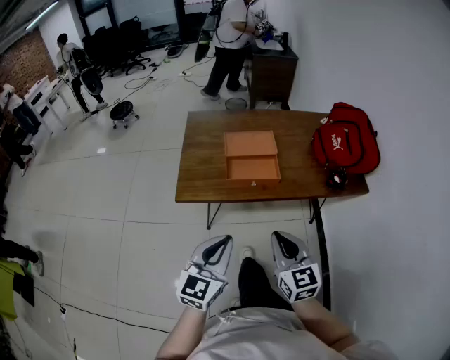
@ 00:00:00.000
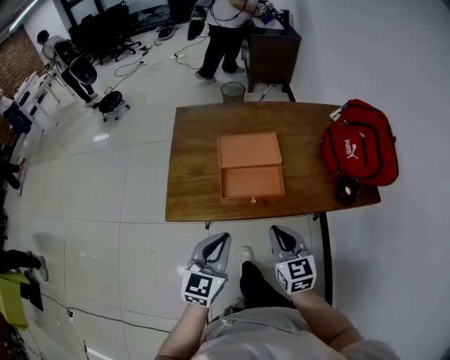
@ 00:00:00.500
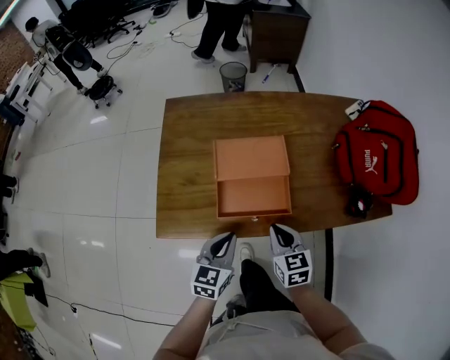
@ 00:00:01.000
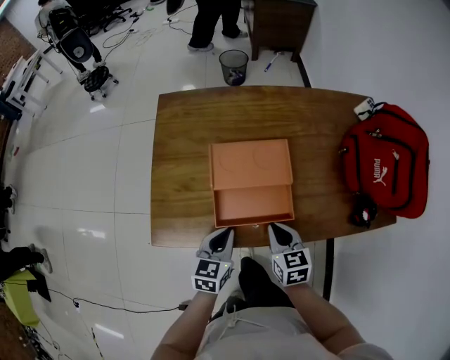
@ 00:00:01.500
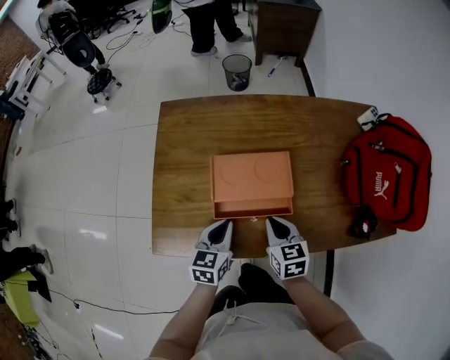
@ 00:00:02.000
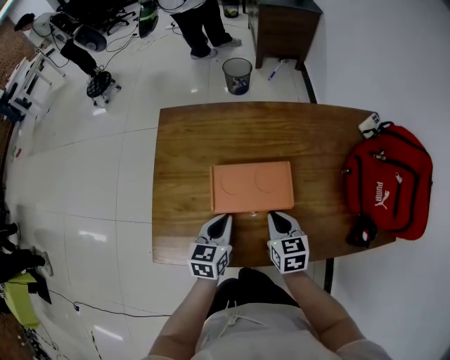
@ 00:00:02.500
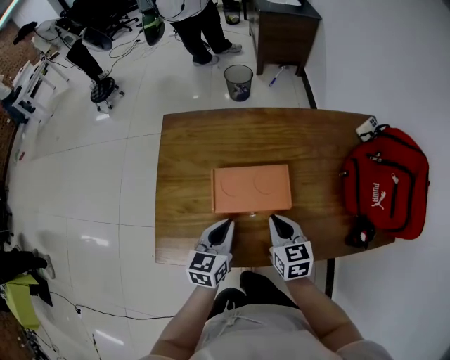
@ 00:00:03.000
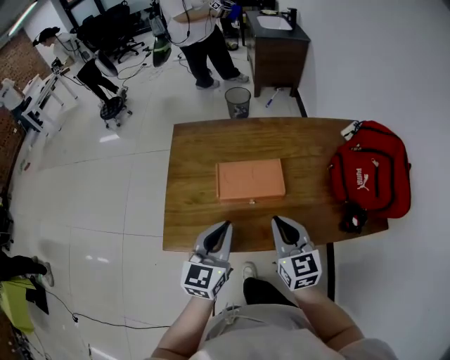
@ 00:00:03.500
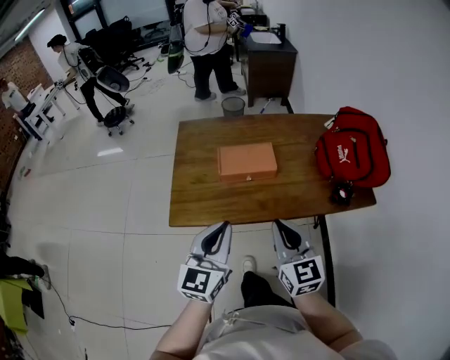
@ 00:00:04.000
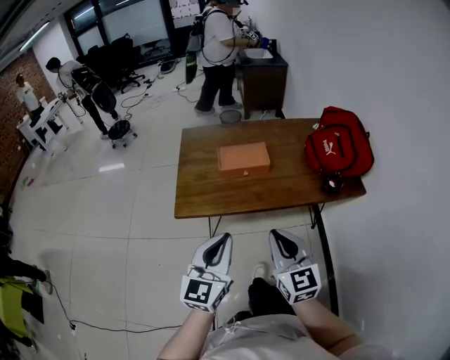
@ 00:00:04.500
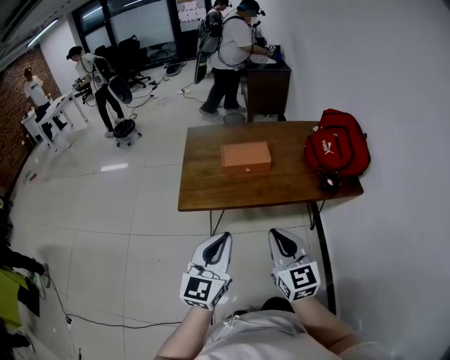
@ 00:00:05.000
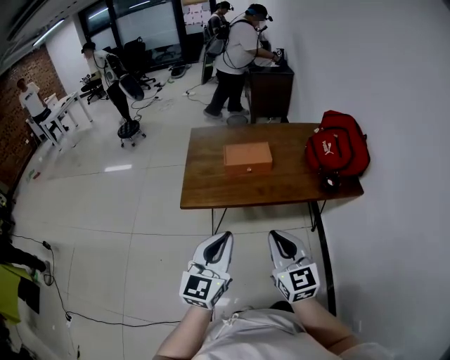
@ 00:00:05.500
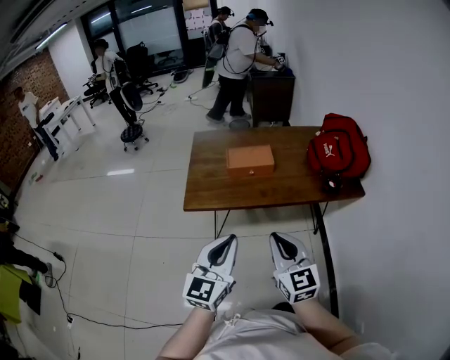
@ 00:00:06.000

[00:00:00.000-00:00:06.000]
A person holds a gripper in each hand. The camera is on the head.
00:00:00.000 to 00:00:02.000: Both grippers travel together forward and downward, roughly 40 cm. The right gripper swivels about 30 degrees. The left gripper rotates about 30 degrees.
00:00:02.000 to 00:00:04.000: Both grippers move upward and backward, roughly 30 cm. The right gripper changes its angle by about 30 degrees, while the left gripper turns by approximately 30 degrees.
00:00:04.000 to 00:00:06.000: Both grippers travel together backward, about 20 cm.

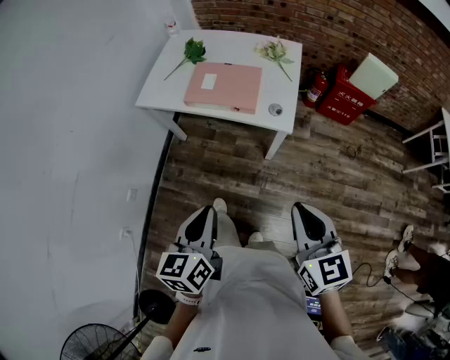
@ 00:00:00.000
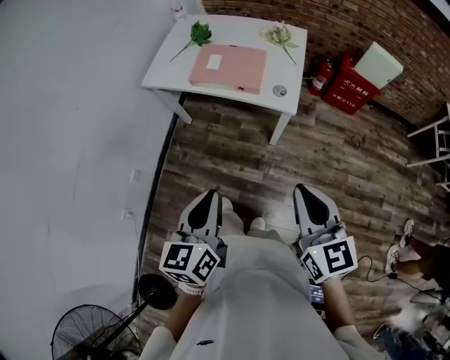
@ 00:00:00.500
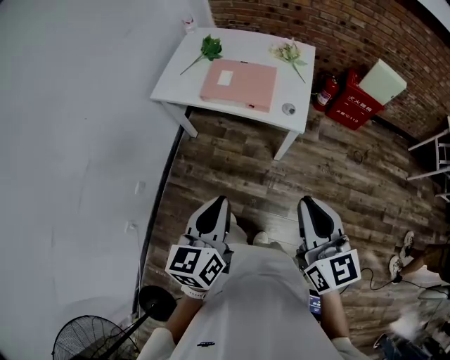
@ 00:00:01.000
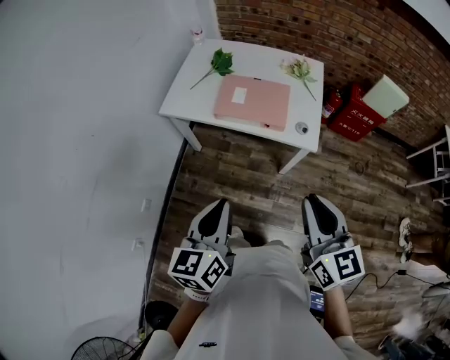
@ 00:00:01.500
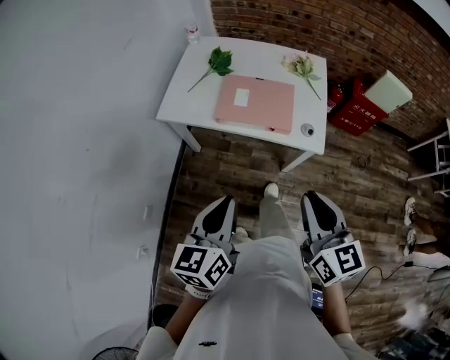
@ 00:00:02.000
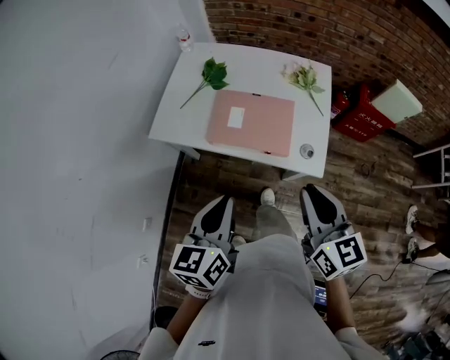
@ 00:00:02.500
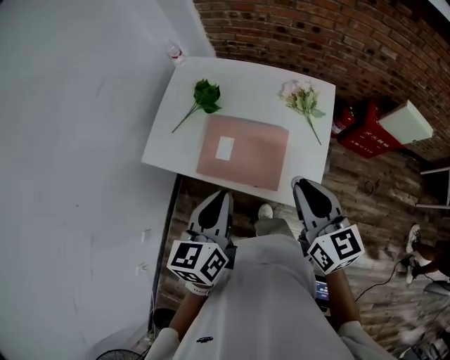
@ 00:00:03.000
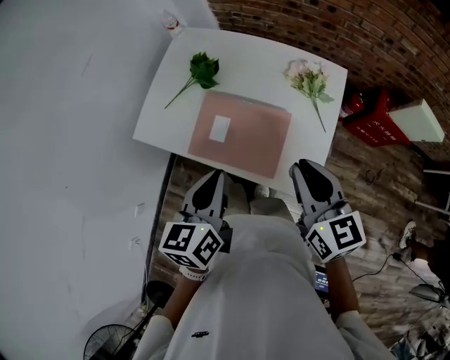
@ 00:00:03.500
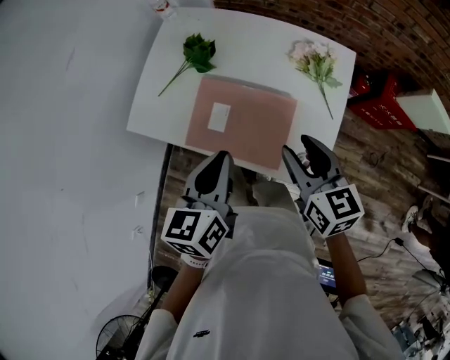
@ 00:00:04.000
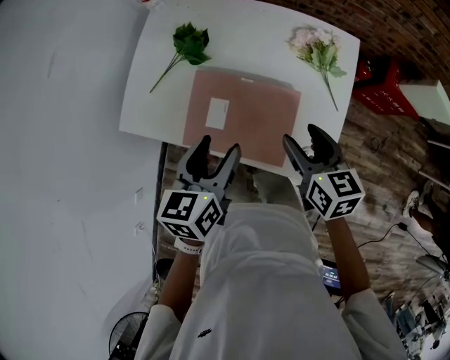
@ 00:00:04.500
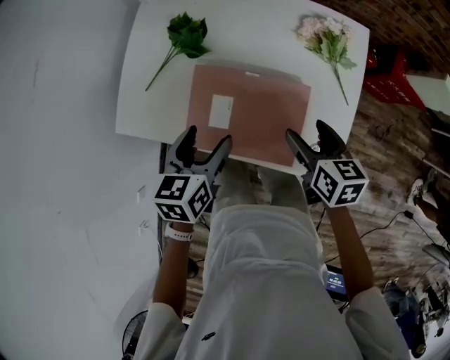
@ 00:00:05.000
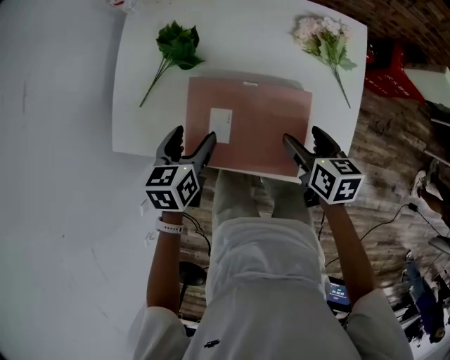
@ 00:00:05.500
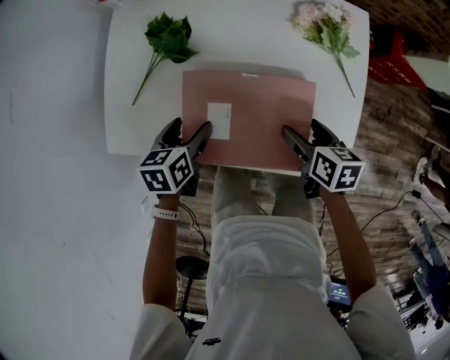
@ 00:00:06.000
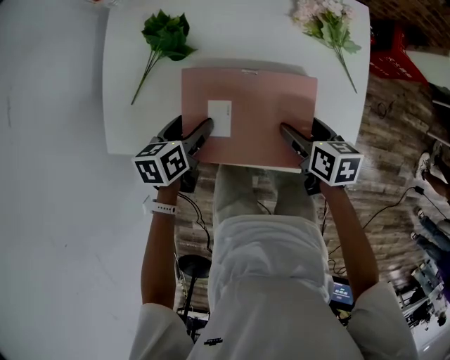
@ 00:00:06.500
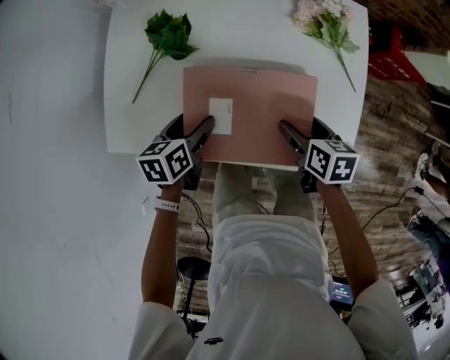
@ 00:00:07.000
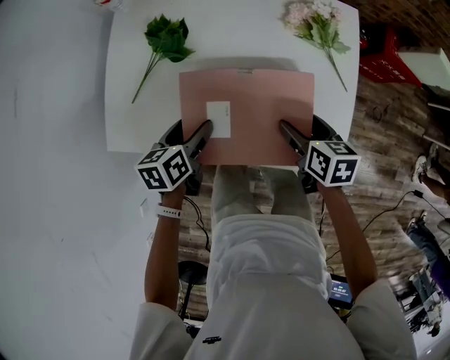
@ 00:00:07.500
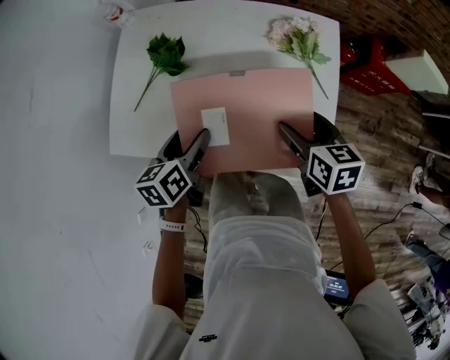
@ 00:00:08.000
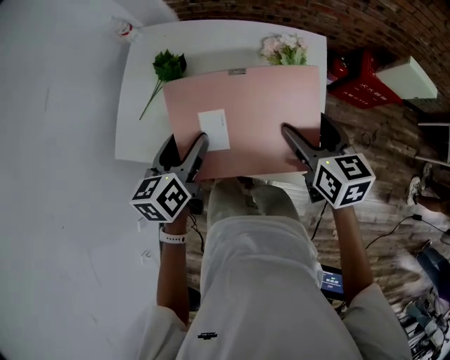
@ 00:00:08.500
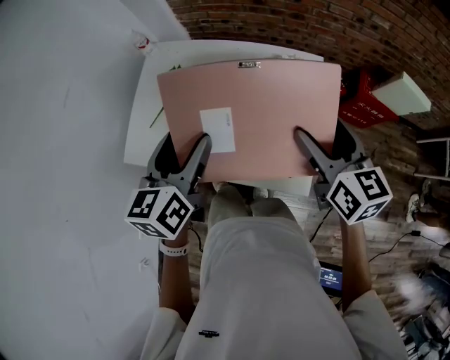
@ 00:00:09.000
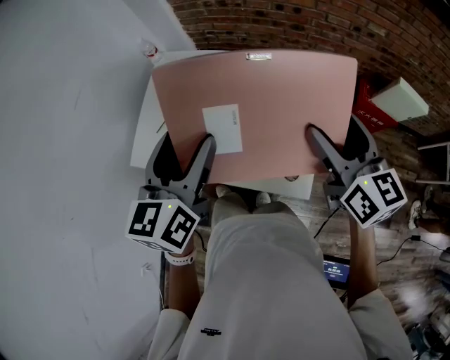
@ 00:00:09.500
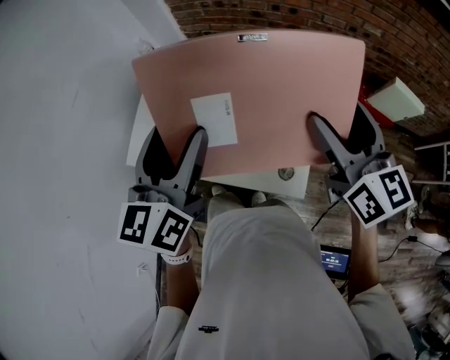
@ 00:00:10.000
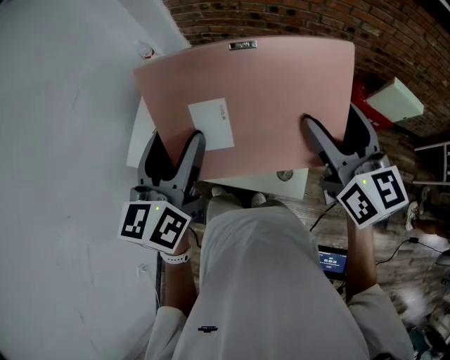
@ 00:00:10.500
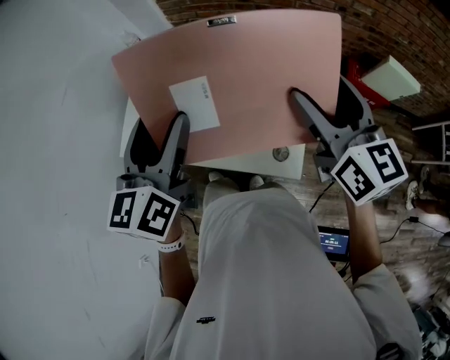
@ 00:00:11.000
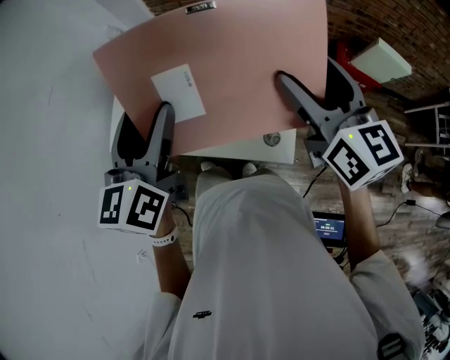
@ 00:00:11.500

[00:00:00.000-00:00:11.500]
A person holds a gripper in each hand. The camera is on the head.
00:00:00.000 to 00:00:02.000: The grippers both shift forward and to the left by approximately 15 cm.
00:00:02.000 to 00:00:04.000: The left gripper moves forward and to the right, about 35 cm; the right gripper is displaced forward by roughly 35 cm, and opens.
00:00:04.000 to 00:00:06.000: The right gripper moves downward, some 20 cm, rotates some 40 degrees, and opens its fingers, while the left gripper shifts about 30 cm downward, forward and to the left, rotates approximately 30 degrees, and opens up.
00:00:06.000 to 00:00:07.500: The grippers move only a little.
00:00:07.500 to 00:00:09.500: The grippers both shift upward by approximately 35 cm. The right gripper tilts its fingers some 40 degrees upward, while the left gripper tilts its fingers approximately 30 degrees upward.
00:00:09.500 to 00:00:11.500: The grippers stay close to where they were, moving slightly.

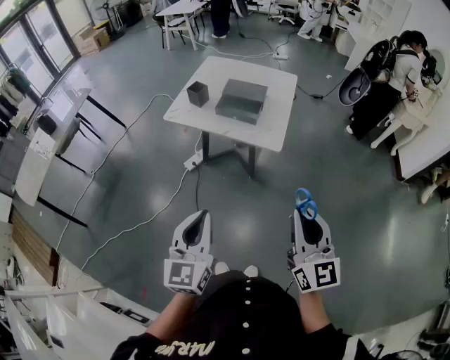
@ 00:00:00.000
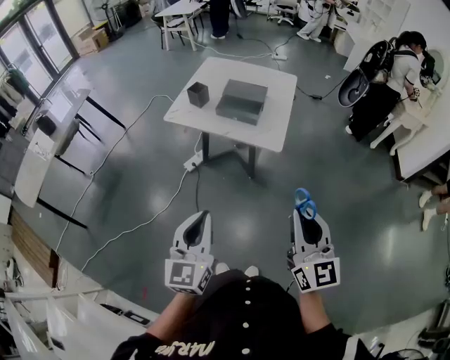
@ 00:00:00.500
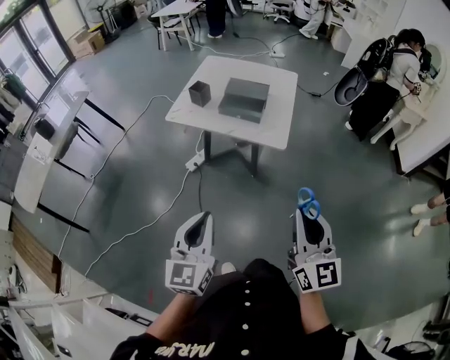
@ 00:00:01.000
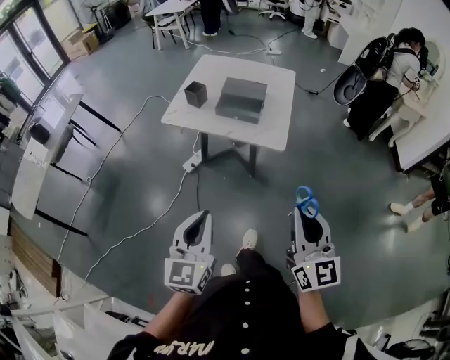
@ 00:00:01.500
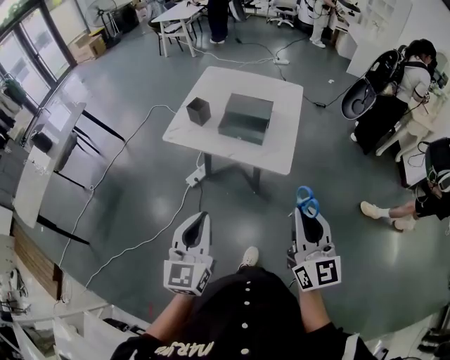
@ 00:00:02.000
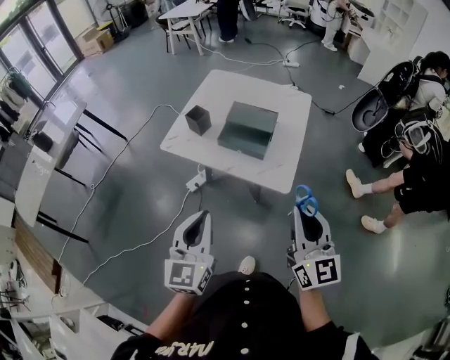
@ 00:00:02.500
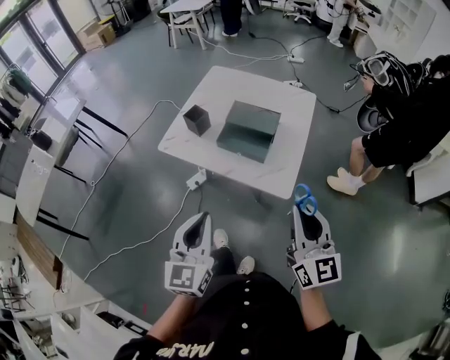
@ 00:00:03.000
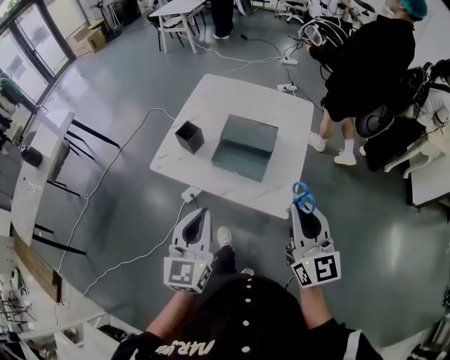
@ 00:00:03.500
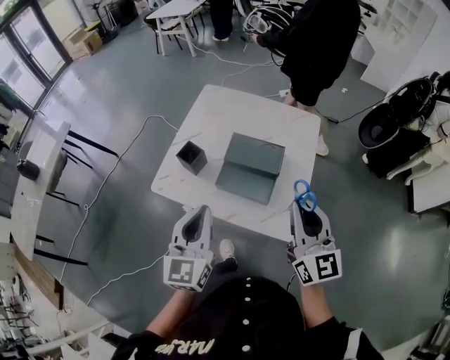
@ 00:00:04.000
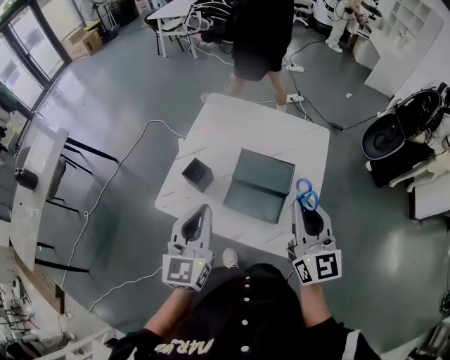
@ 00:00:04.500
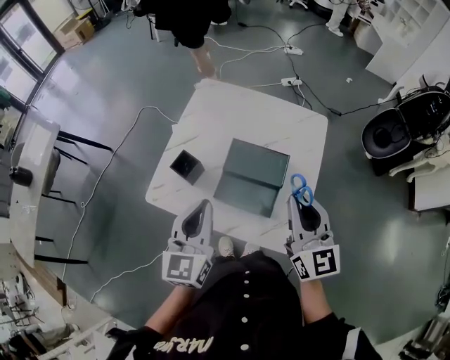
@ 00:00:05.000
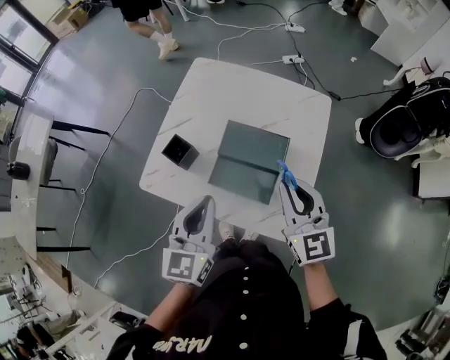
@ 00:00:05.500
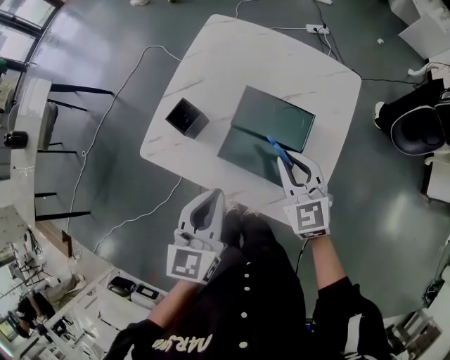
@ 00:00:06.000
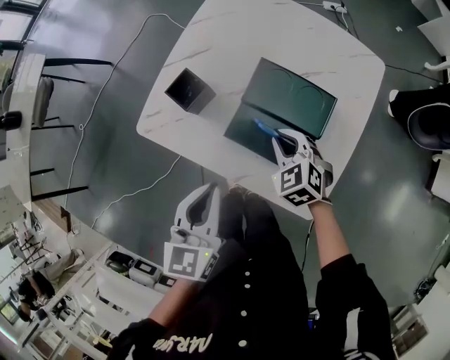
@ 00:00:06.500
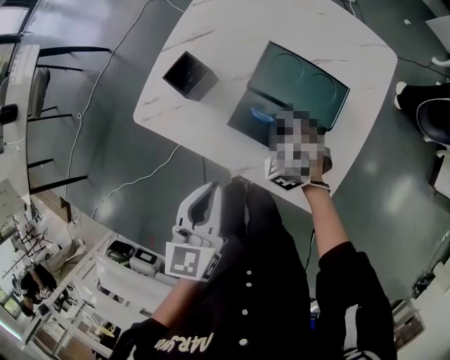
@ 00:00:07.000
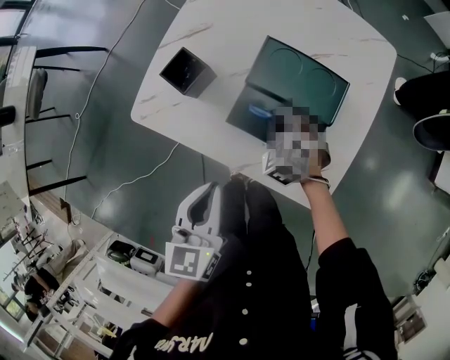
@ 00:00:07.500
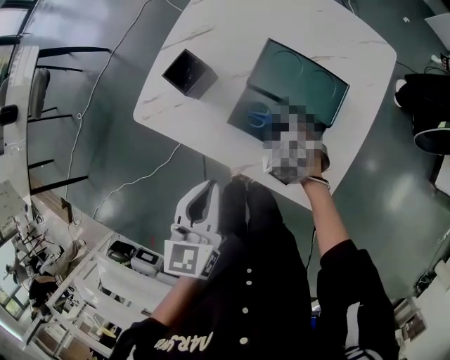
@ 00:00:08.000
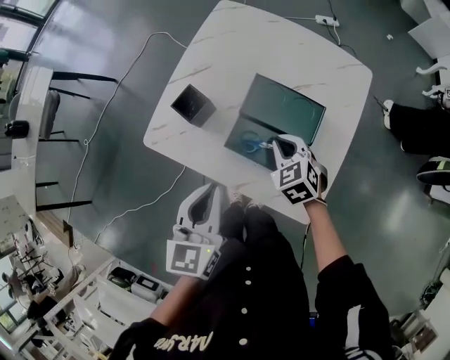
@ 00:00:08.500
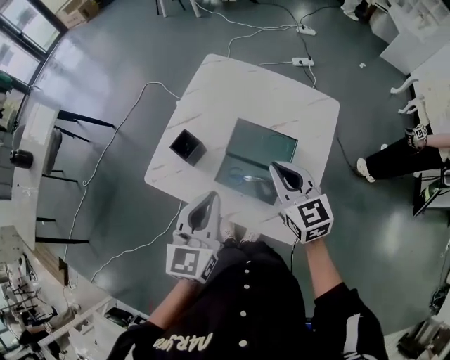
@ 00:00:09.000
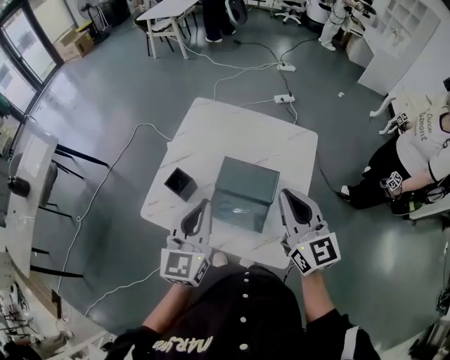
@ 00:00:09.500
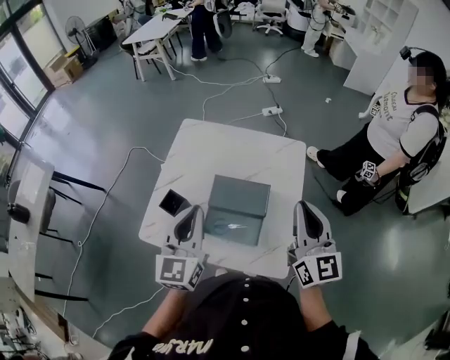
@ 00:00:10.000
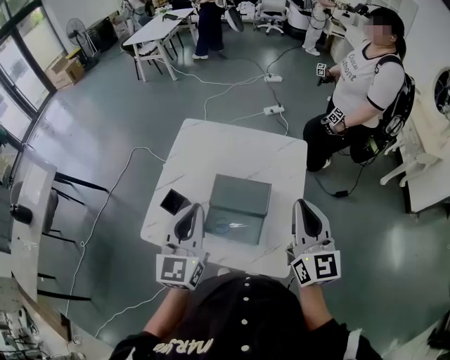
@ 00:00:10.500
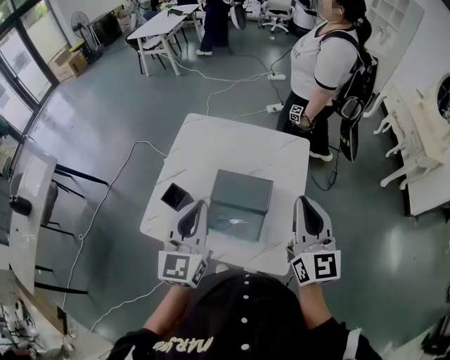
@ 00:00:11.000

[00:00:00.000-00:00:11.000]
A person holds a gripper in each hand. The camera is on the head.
00:00:00.000 to 00:00:02.000: The two grippers go some 15 cm forward.
00:00:02.000 to 00:00:03.500: Both grippers travel together forward, about 25 cm.
00:00:03.500 to 00:00:05.500: The two grippers go some 25 cm forward.
00:00:05.500 to 00:00:07.500: The left gripper shifts some 15 cm downward, and rotates roughly 20 degrees. Meanwhile the right gripper moves downward, some 35 cm, and angles its fingers downward, by about 50 degrees.
00:00:07.500 to 00:00:09.000: The right gripper goes approximately 30 cm upward, and points its fingers about 40 degrees further upward. Meanwhile the left gripper shifts approximately 15 cm upward, and changes its angle by approximately 20 degrees.
00:00:09.000 to 00:00:11.000: The right gripper moves upward and to the right, roughly 20 cm, and swivels about 40 degrees. The left gripper moves upward, approximately 10 cm.
